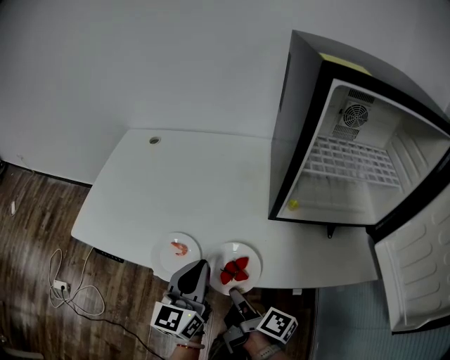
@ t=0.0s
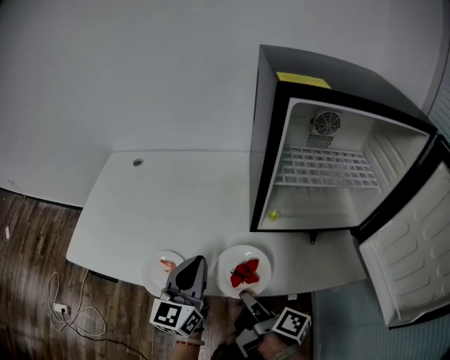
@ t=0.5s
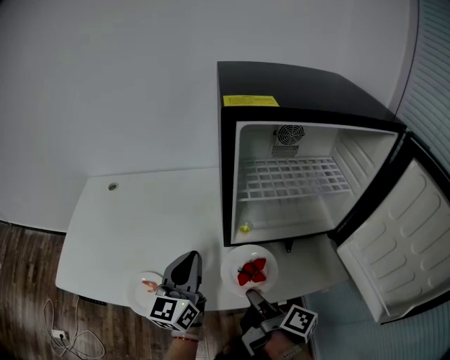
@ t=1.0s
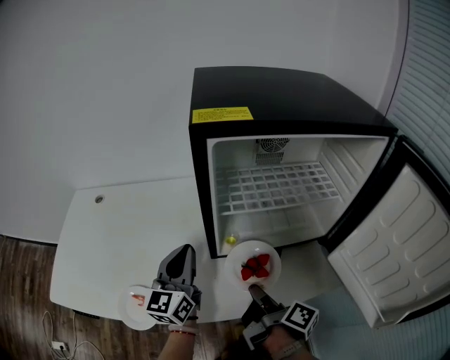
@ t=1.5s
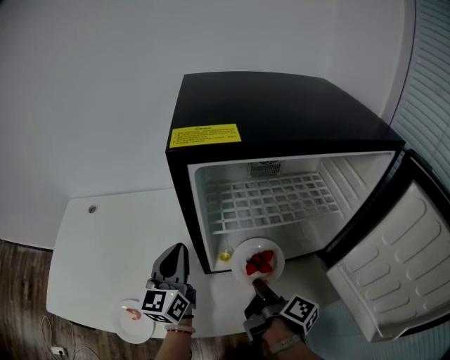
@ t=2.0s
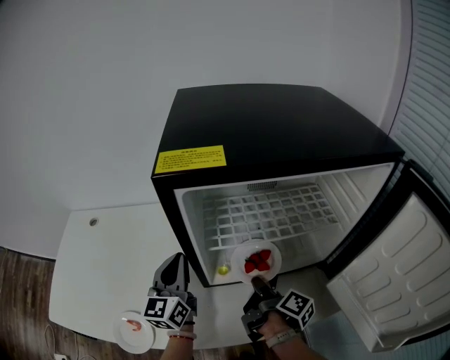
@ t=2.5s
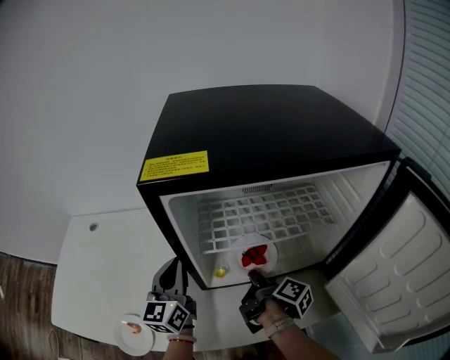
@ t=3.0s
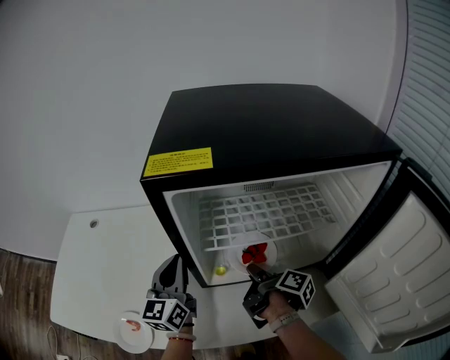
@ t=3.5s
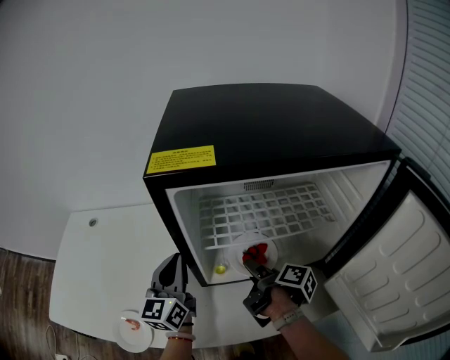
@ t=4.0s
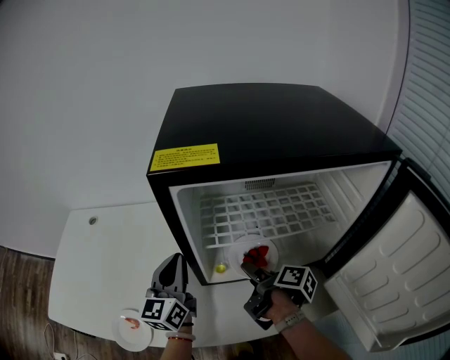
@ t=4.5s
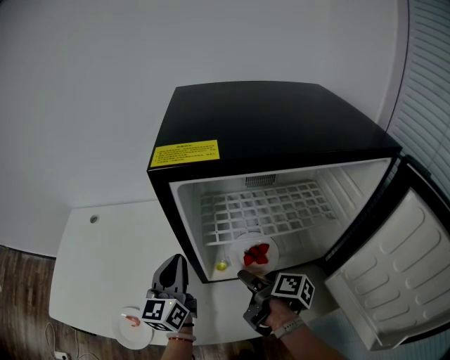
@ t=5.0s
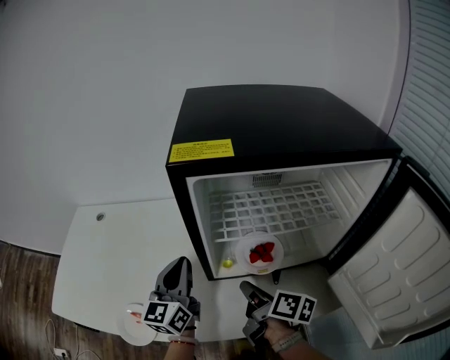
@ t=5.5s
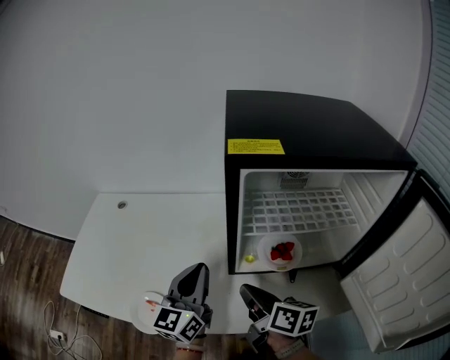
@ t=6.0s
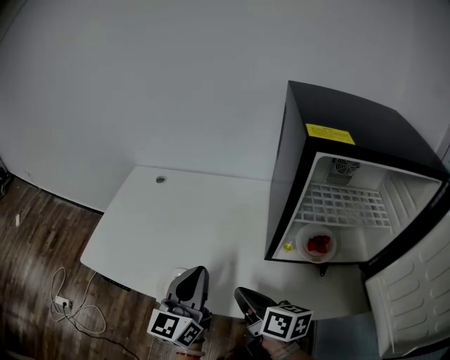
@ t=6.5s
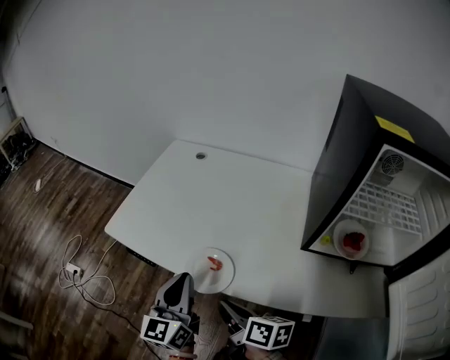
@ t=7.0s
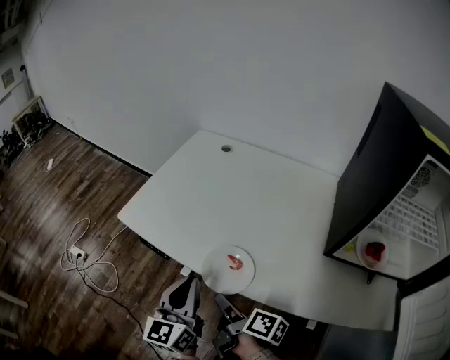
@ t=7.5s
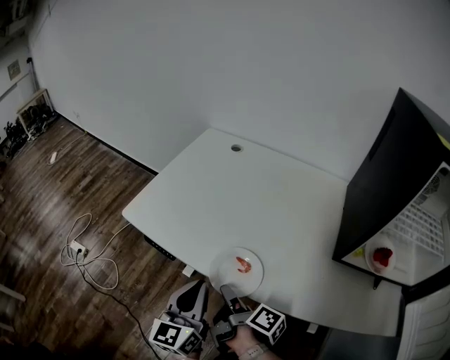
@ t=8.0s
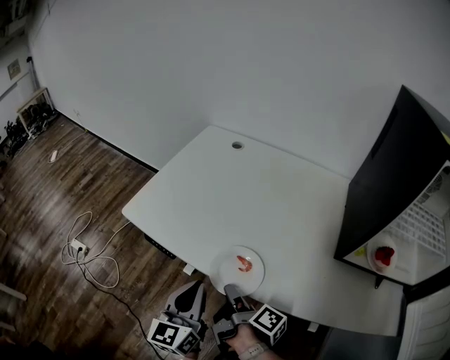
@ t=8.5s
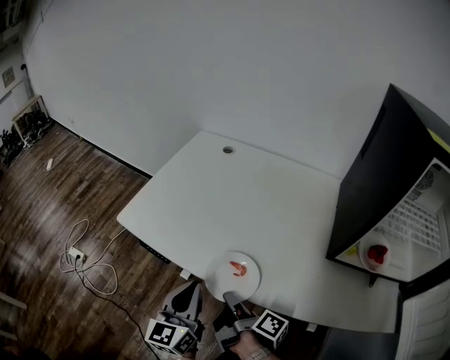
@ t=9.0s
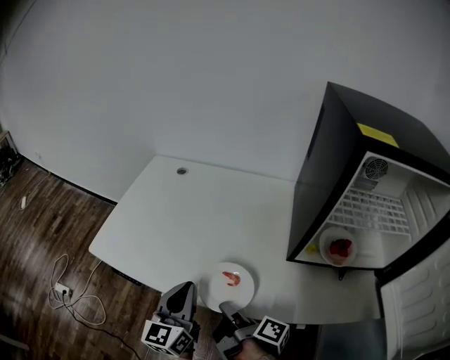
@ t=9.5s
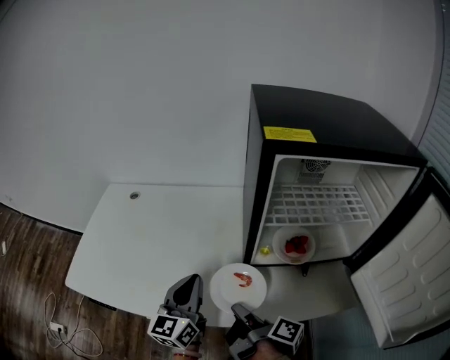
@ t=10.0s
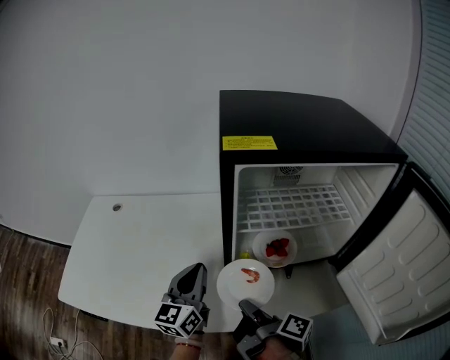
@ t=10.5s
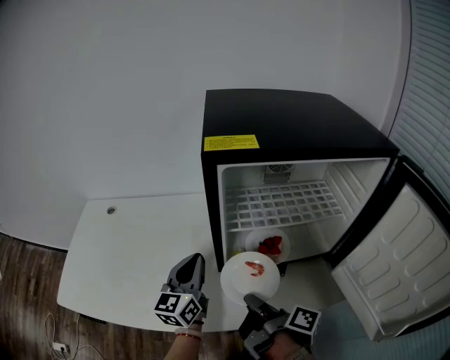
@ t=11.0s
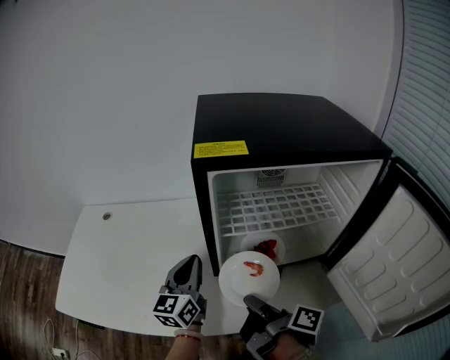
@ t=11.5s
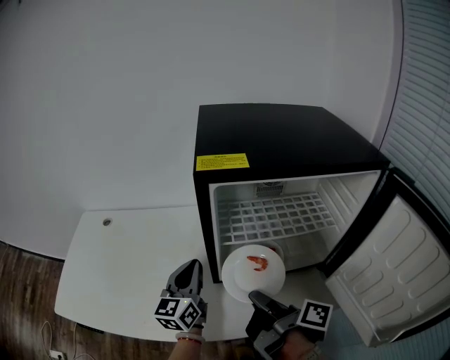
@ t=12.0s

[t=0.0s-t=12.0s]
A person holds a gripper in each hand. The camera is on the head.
t=0.0s to t=2.0s: The left gripper moves forward and to the right, roughly 25 cm. The right gripper moves to the right and forward, roughly 25 cm, and turns by approximately 30 degrees.
t=2.0s to t=4.0s: The right gripper moves forward, roughly 10 cm, and opens up.
t=4.0s to t=6.0s: The left gripper travels backward by about 10 cm. Meanwhile the right gripper goes about 15 cm to the left, backward and upward, twists approximately 40 degrees counterclockwise, seen from behind, and closes.
t=6.0s to t=8.0s: The left gripper ends up roughly 35 cm from where it was, and turns by some 30 degrees. The right gripper moves about 35 cm, rotates some 40 degrees, and opens.
t=8.0s to t=10.0s: The left gripper goes about 20 cm to the right, and turns by about 20 degrees, while the right gripper travels to the right and upward by roughly 25 cm, rotates some 20 degrees, and closes its fingers.
t=10.0s to t=12.0s: The right gripper is displaced to the right and upward by about 15 cm; the left gripper is displaced to the right and forward by roughly 15 cm.

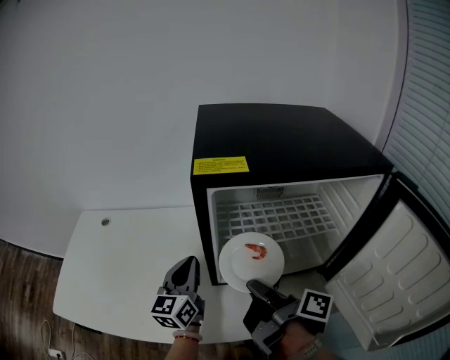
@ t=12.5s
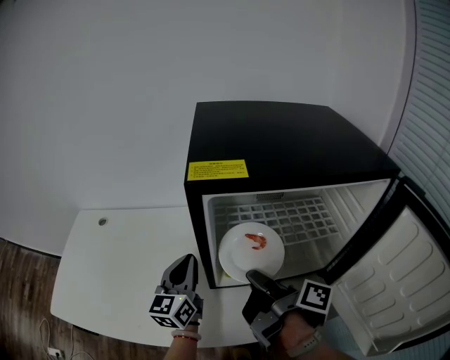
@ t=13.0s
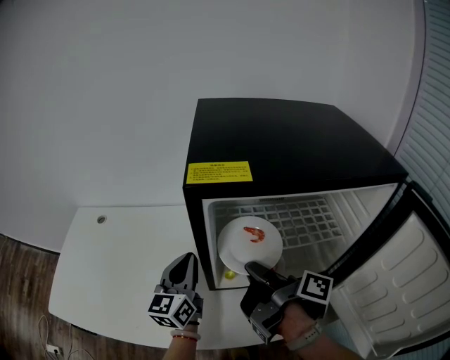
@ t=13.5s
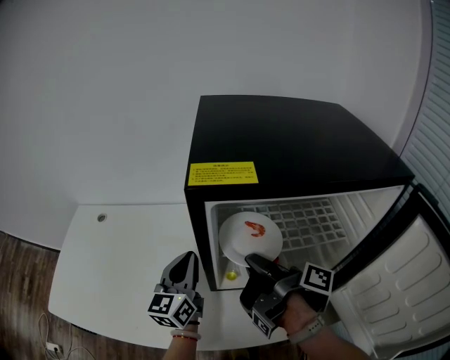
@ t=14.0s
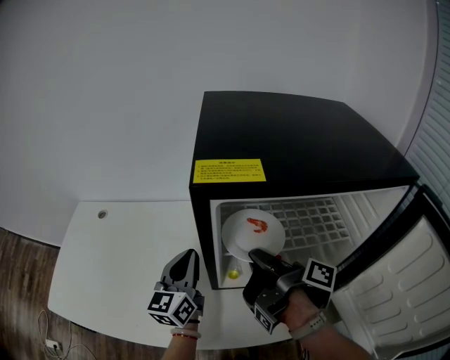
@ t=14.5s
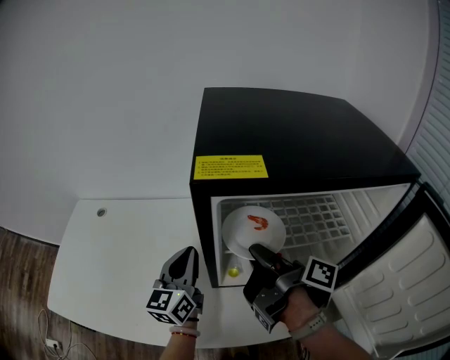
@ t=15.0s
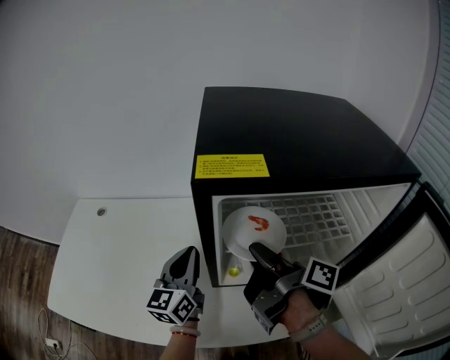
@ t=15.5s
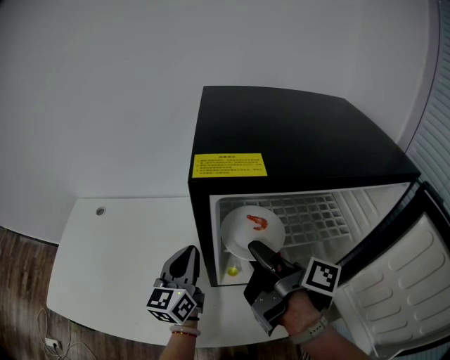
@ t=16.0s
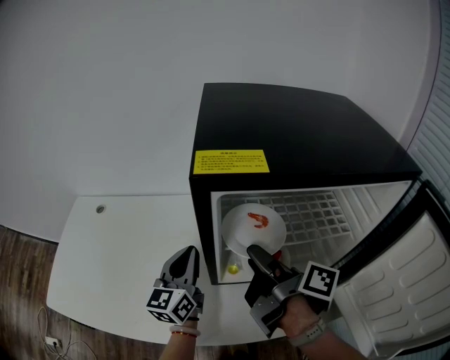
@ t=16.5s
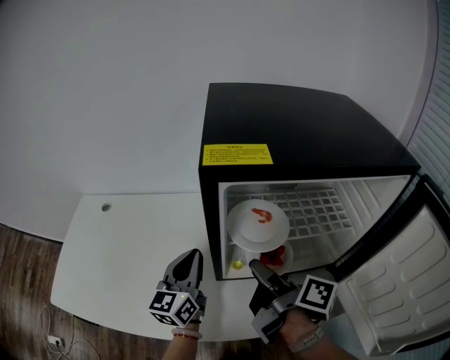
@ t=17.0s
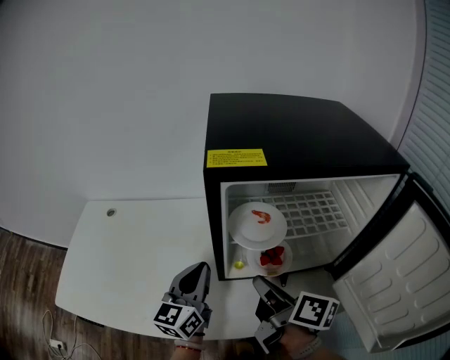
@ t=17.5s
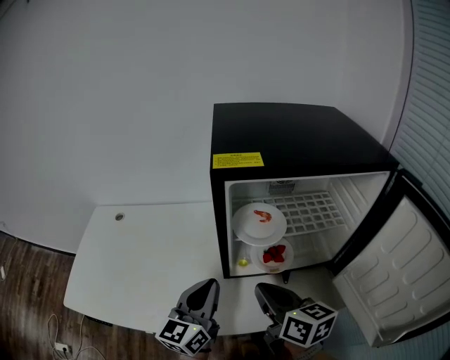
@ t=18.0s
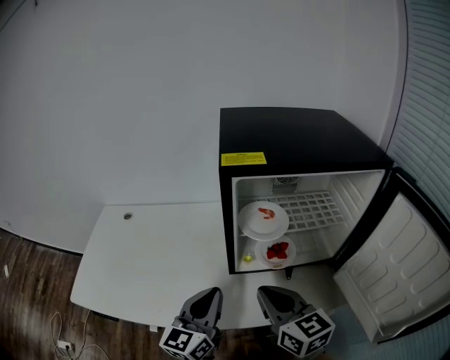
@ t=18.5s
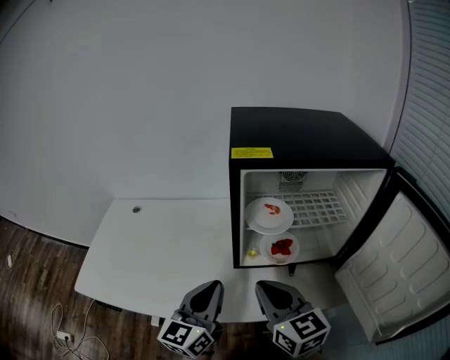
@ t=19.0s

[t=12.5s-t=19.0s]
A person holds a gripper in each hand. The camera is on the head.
t=12.5s to t=14.5s: The right gripper heads forward, covering about 10 cm.
t=14.5s to t=17.0s: The right gripper shifts by approximately 5 cm, and opens.
t=17.0s to t=19.0s: The two grippers go roughly 15 cm backward. The right gripper twists roughly 70 degrees counterclockwise, seen from behind, and closes its fingers.

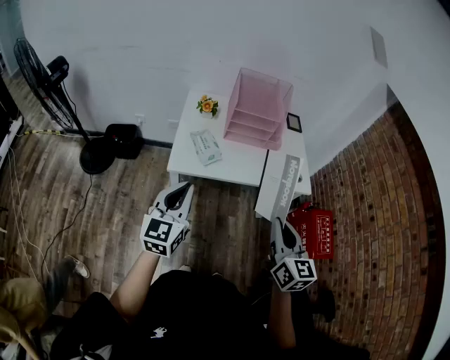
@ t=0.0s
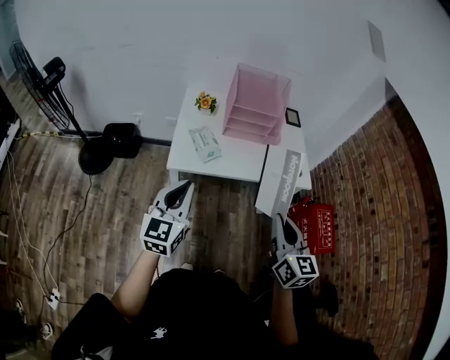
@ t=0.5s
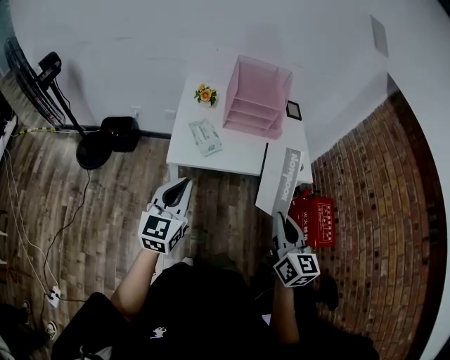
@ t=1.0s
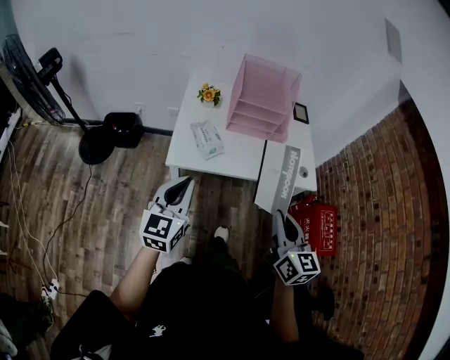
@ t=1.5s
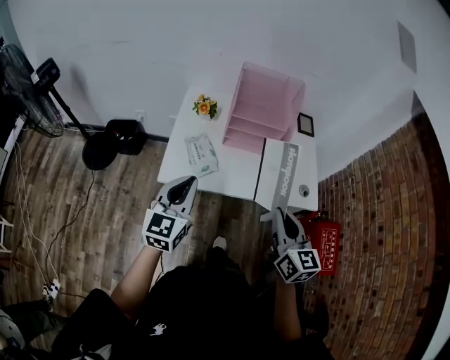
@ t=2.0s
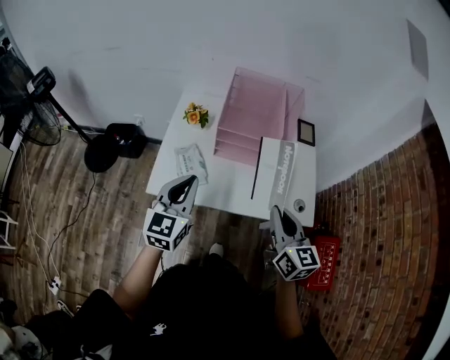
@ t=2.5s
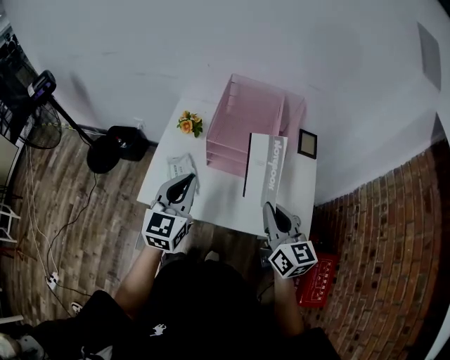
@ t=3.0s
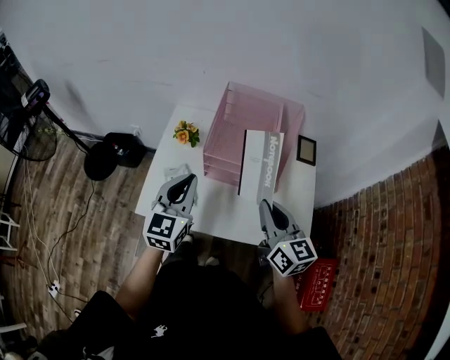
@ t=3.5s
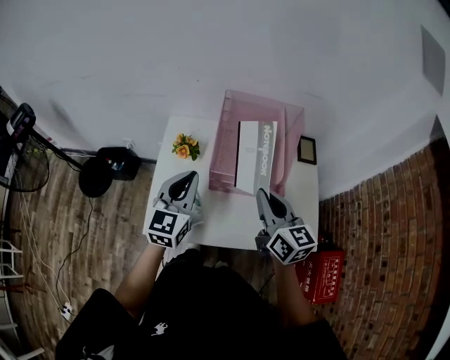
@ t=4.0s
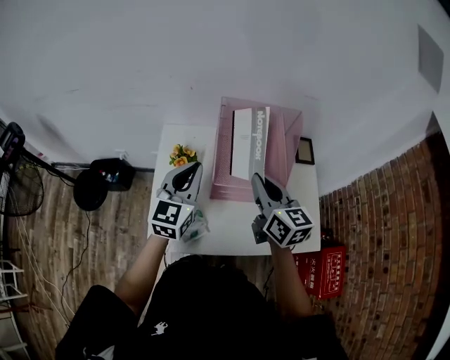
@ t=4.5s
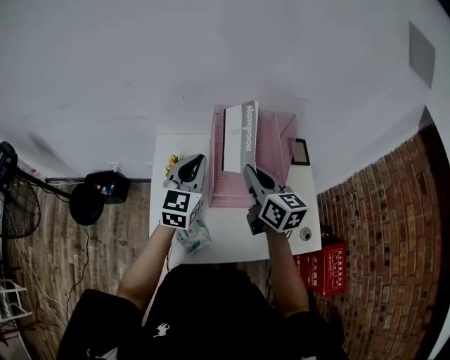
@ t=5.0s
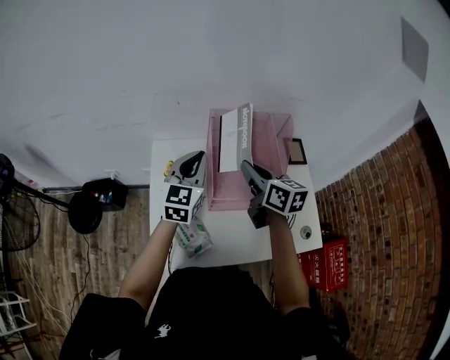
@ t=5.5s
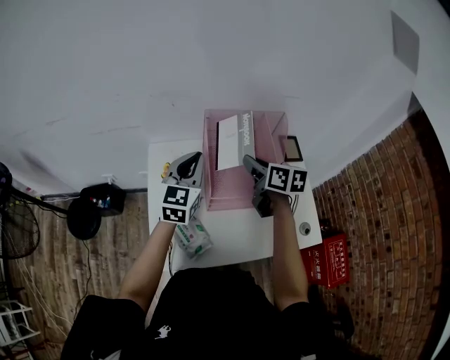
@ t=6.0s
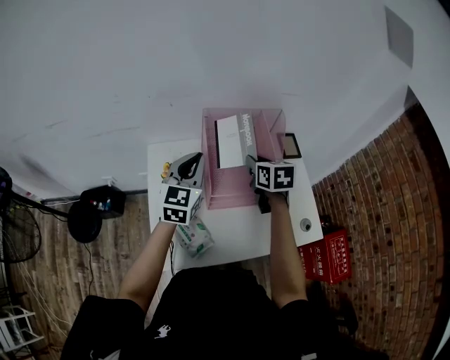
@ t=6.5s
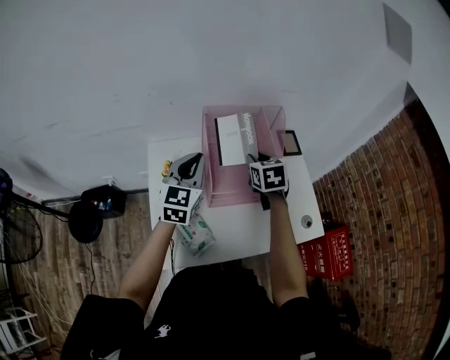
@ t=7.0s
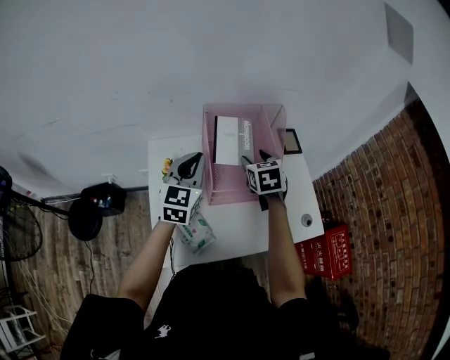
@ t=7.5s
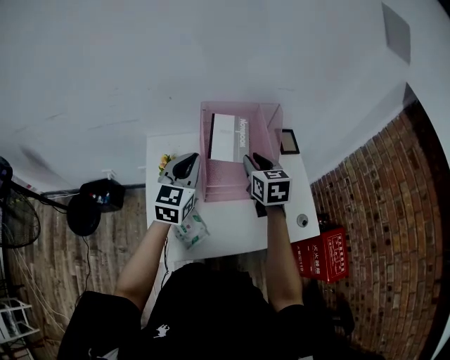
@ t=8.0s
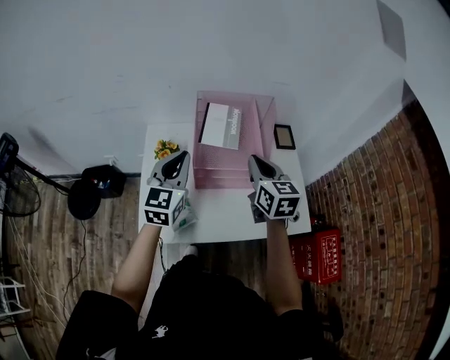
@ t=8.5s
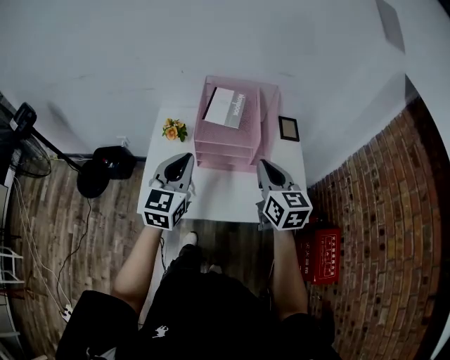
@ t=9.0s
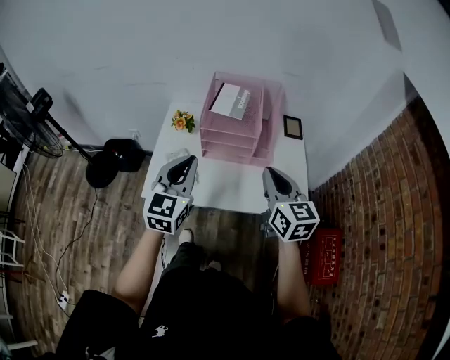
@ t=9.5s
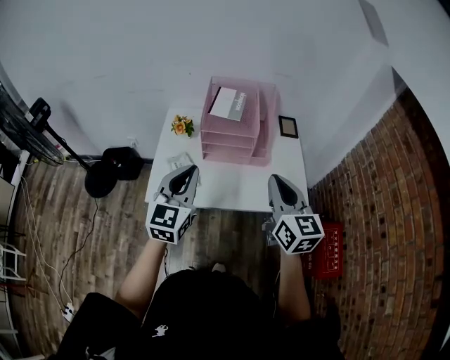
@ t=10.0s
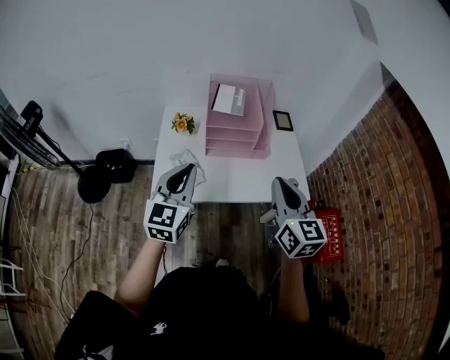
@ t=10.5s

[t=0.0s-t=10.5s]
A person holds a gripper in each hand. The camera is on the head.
t=0.0s to t=2.0s: The grippers both shift forward by about 15 cm.
t=2.0s to t=4.0s: The two grippers go approximately 25 cm forward.
t=4.0s to t=6.5s: Both grippers travel together forward, about 15 cm. The right gripper turns by approximately 30 degrees.
t=6.5s to t=8.5s: The left gripper heads backward, covering some 10 cm. The right gripper shifts approximately 10 cm backward and upward, and opens, then closes again.
t=8.5s to t=10.5s: Both grippers move backward, some 25 cm.
